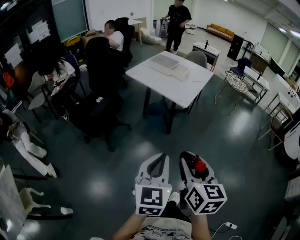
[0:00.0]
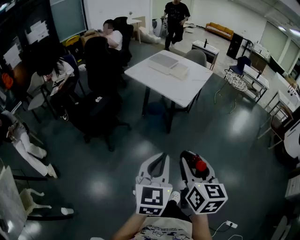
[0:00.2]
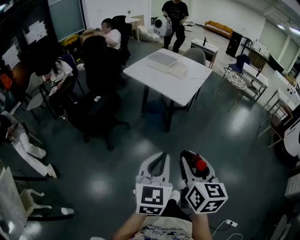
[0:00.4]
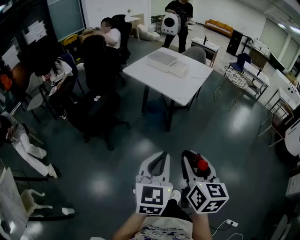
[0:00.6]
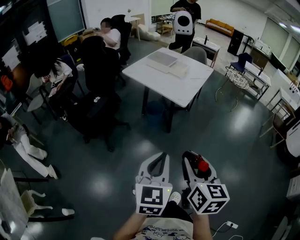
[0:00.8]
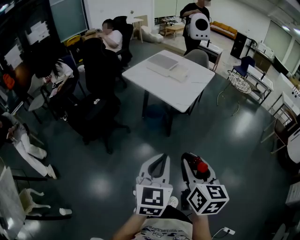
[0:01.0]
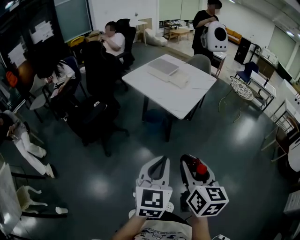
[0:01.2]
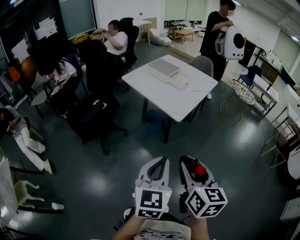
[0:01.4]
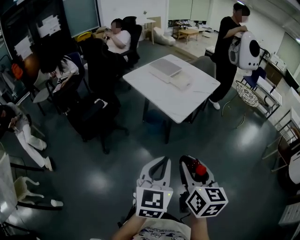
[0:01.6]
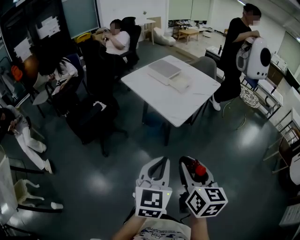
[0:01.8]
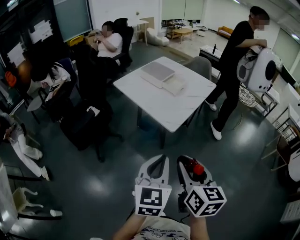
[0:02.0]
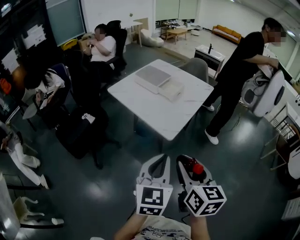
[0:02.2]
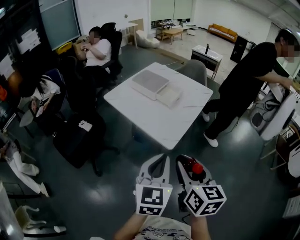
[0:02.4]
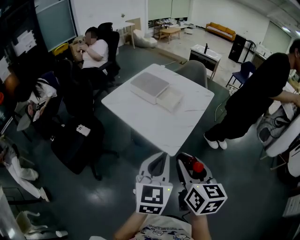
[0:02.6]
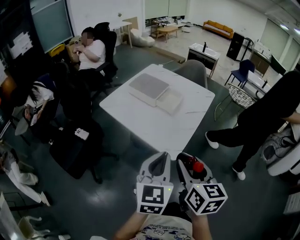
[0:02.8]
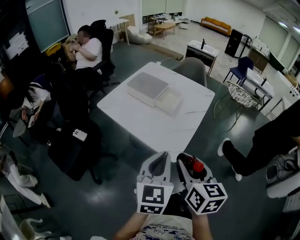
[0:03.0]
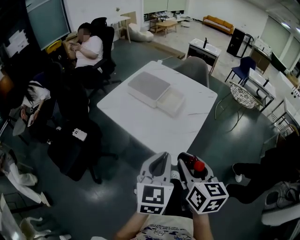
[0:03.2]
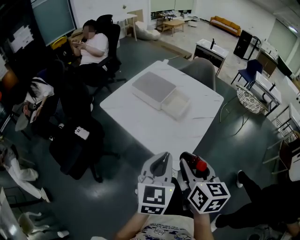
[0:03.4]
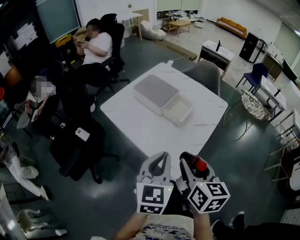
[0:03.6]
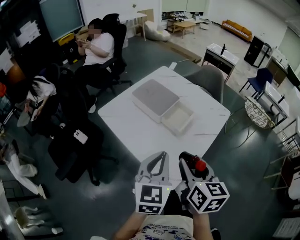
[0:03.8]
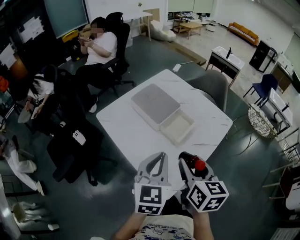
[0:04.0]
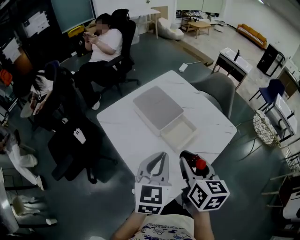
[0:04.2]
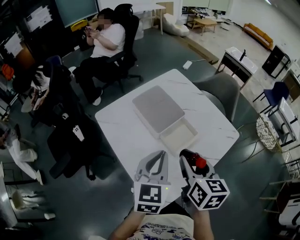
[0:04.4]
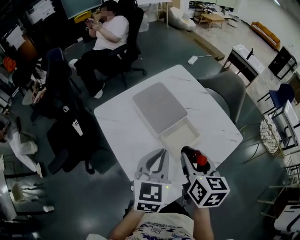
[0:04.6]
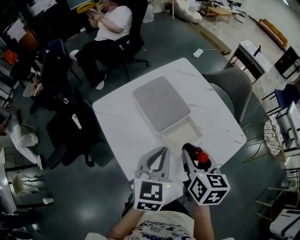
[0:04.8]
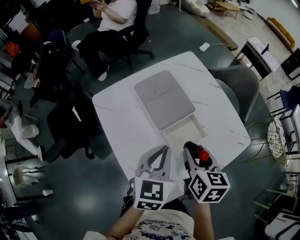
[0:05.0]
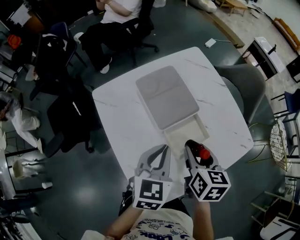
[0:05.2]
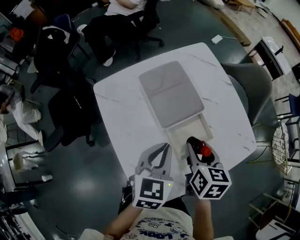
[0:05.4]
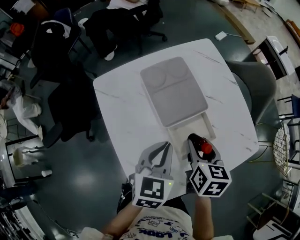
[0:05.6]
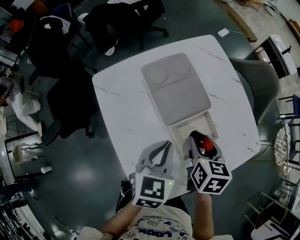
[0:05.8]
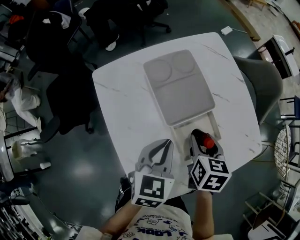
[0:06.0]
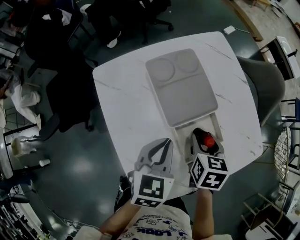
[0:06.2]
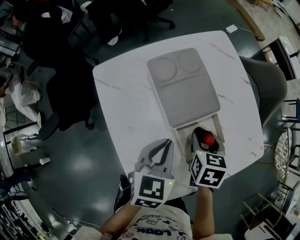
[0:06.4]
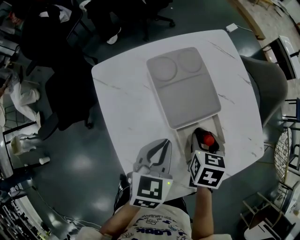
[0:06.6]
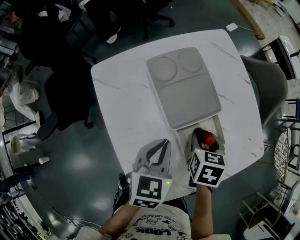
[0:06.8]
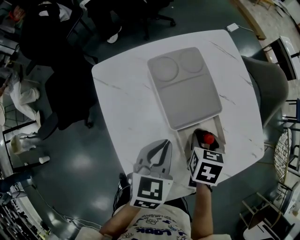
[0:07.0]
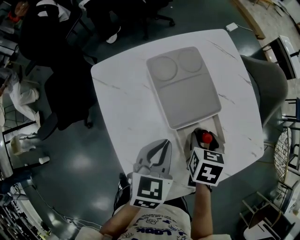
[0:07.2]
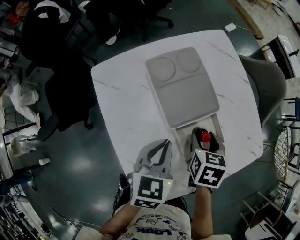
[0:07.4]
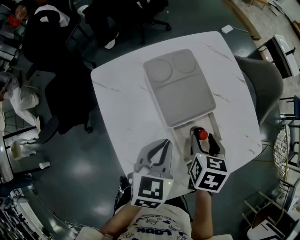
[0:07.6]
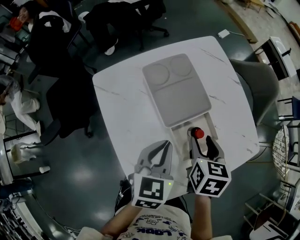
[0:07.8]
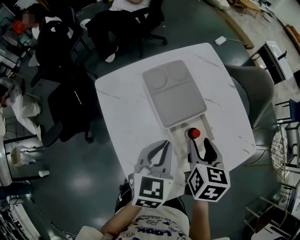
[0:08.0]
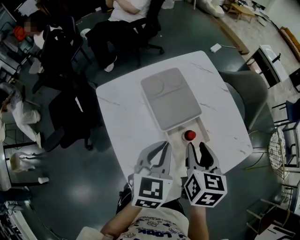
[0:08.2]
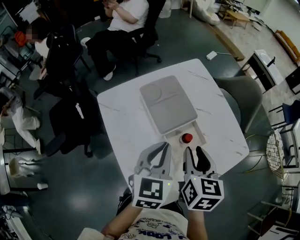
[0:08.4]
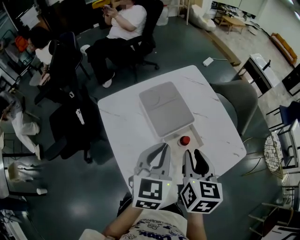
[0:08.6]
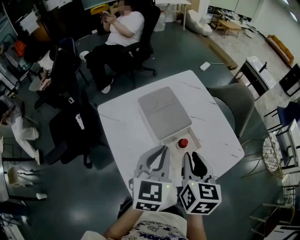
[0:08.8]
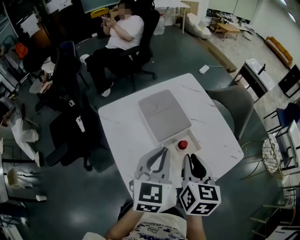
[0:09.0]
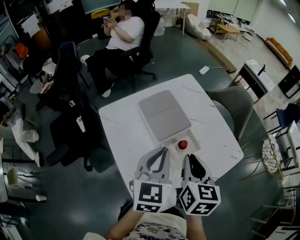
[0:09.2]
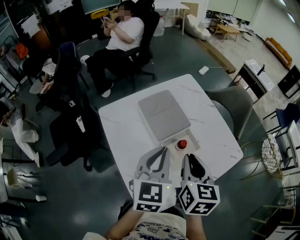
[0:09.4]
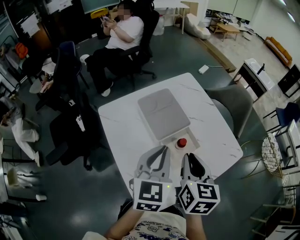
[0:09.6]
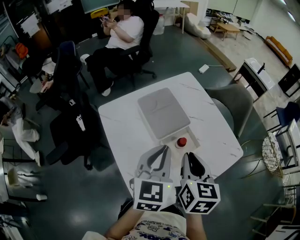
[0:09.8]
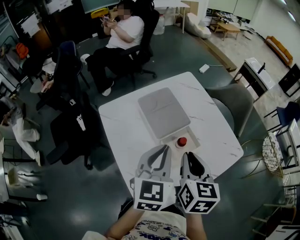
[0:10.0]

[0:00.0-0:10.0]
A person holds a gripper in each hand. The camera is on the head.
0:00.0 to 0:01.4: Both grippers travel together forward and to the right, approximately 15 cm.
0:01.4 to 0:02.8: The two grippers go approximately 30 cm forward.
0:02.8 to 0:04.2: Both grippers travel together forward, roughly 30 cm.
0:04.2 to 0:05.8: The right gripper is displaced forward and downward by about 25 cm, and turns by approximately 20 degrees. Meanwhile the left gripper moves downward and forward, some 20 cm, and turns by roughly 20 degrees.
0:05.8 to 0:07.2: The right gripper moves downward, roughly 5 cm.
0:07.2 to 0:08.6: The left gripper heads upward, covering some 15 cm, while the right gripper goes approximately 20 cm upward and backward, swivels about 30 degrees, and closes up.
0:08.6 to 0:10.0: There are only small adjustments of the grippers.

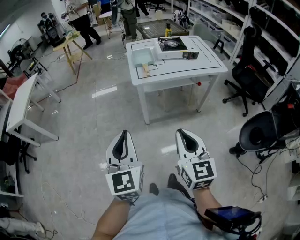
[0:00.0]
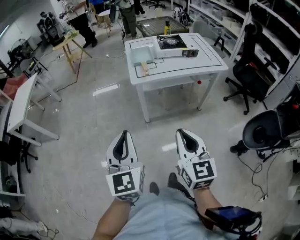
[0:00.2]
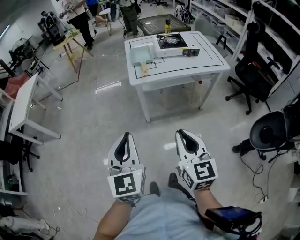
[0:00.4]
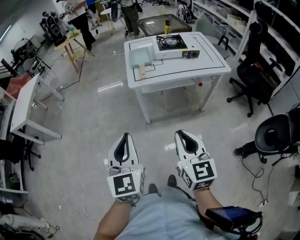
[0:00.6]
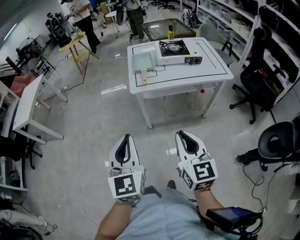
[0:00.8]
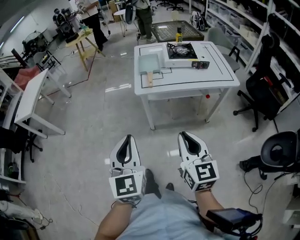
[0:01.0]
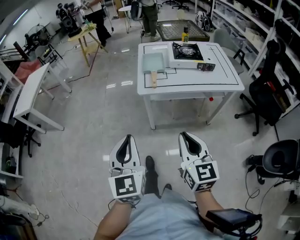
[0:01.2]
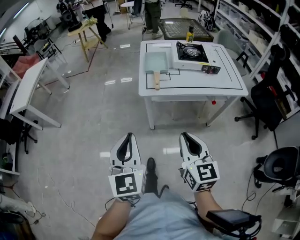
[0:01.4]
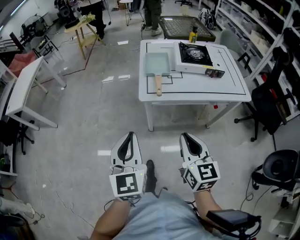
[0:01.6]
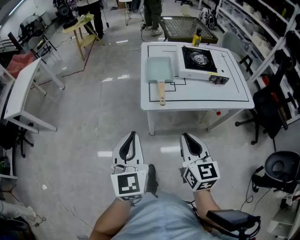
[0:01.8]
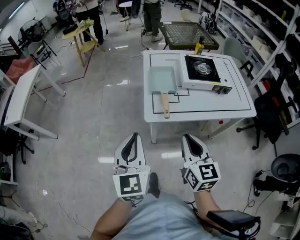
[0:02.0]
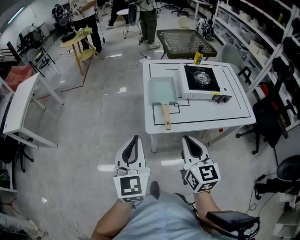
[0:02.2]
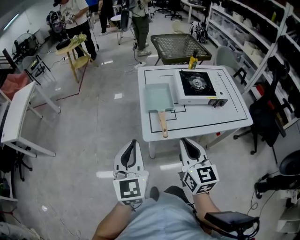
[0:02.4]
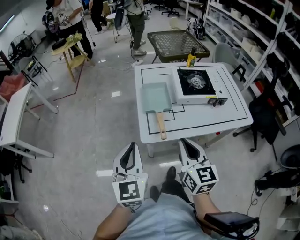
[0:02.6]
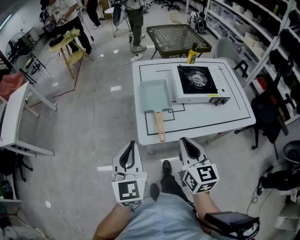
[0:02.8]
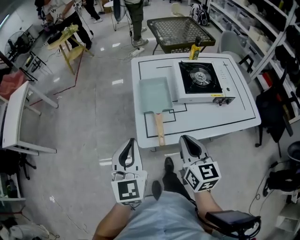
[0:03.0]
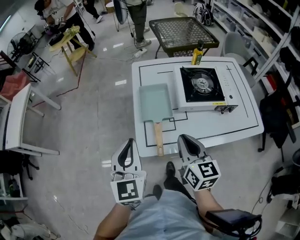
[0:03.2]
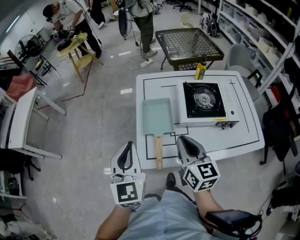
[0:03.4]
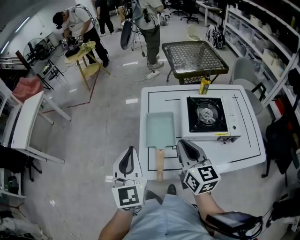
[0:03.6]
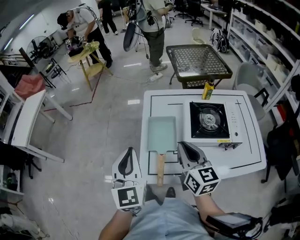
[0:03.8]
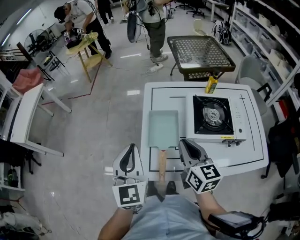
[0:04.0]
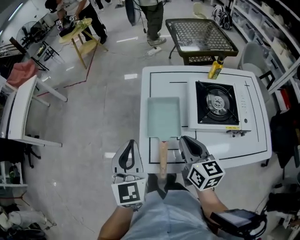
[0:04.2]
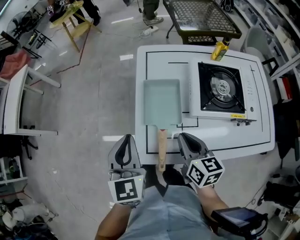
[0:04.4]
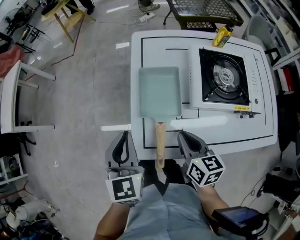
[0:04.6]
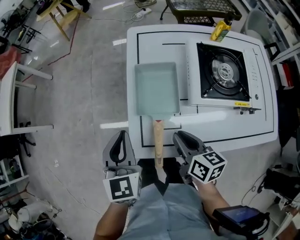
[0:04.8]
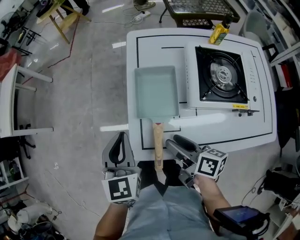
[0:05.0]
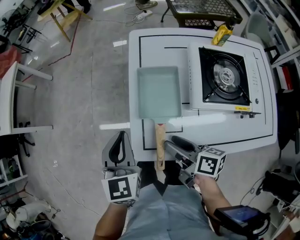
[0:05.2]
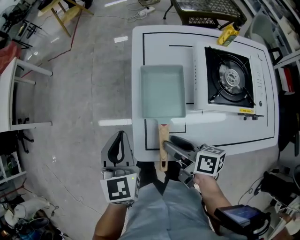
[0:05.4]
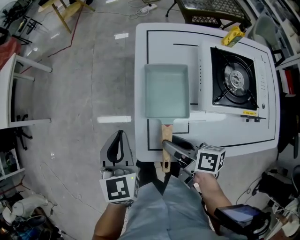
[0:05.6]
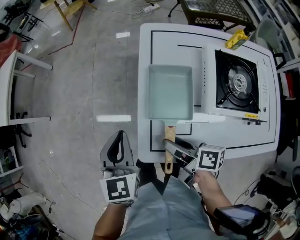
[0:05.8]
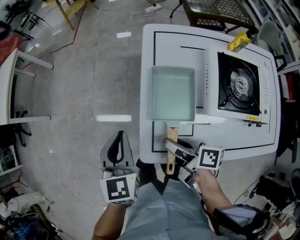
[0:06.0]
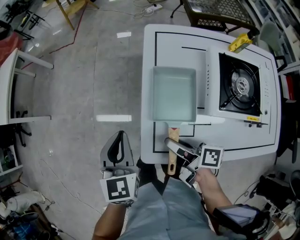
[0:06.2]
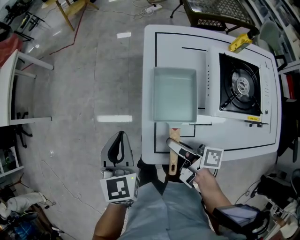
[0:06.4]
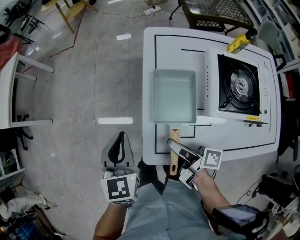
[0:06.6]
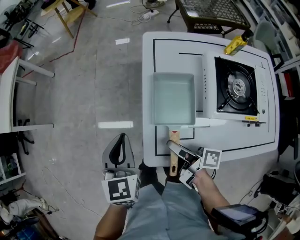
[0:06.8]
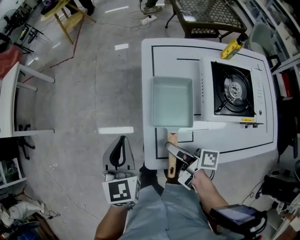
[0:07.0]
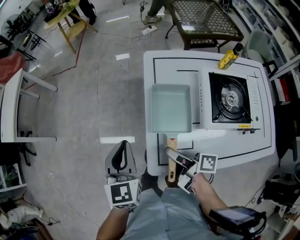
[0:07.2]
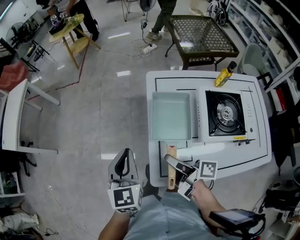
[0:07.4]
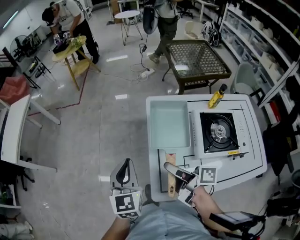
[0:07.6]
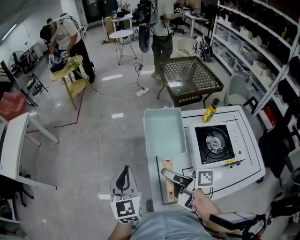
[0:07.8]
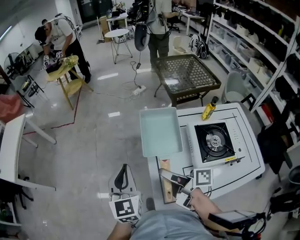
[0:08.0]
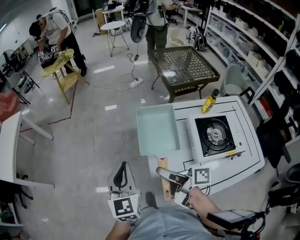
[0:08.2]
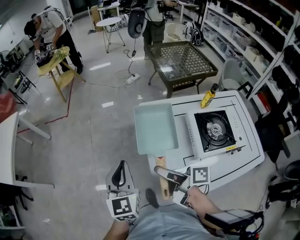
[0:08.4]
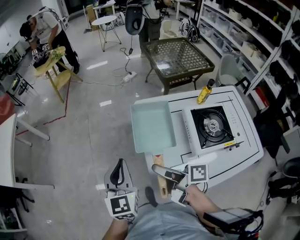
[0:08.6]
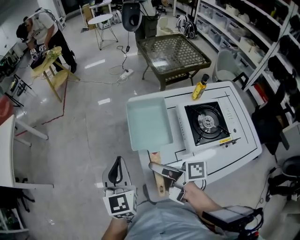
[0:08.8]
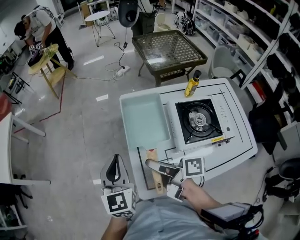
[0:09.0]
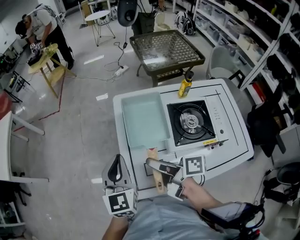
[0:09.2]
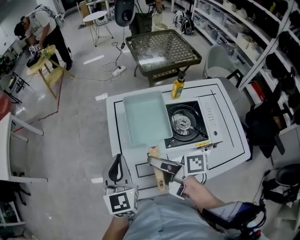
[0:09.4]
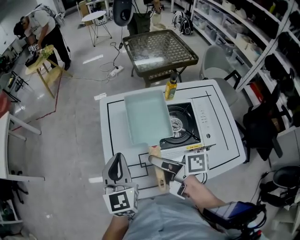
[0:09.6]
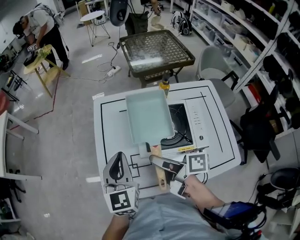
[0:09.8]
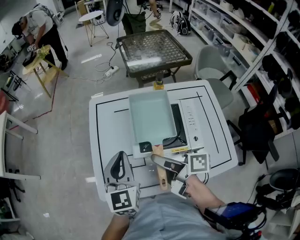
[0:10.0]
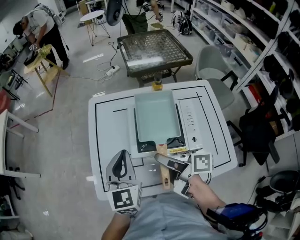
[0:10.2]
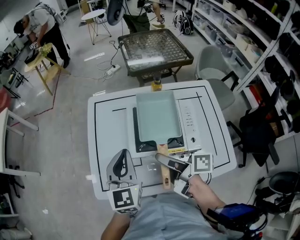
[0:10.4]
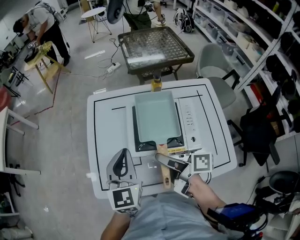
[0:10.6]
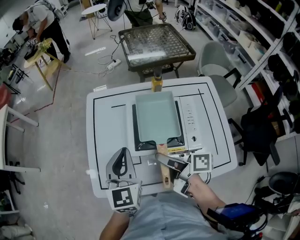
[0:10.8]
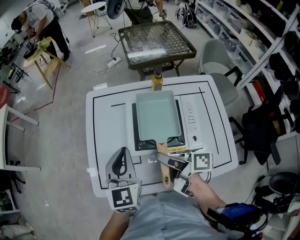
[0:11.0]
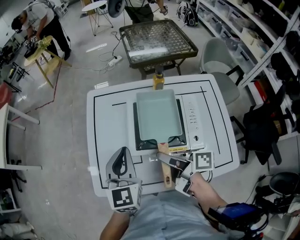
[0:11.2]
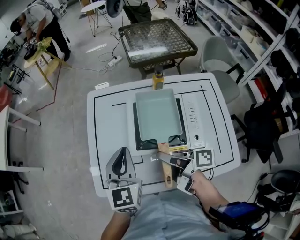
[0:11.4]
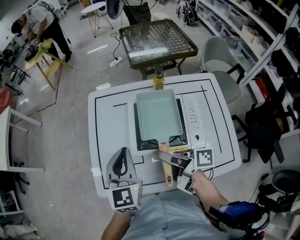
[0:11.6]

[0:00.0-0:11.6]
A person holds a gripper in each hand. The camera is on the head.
0:00.0 to 0:01.4: Both grippers move forward and to the right, some 20 cm.
0:01.4 to 0:02.8: The grippers both shift forward by some 30 cm.
0:02.8 to 0:04.4: The right gripper travels forward and downward by some 25 cm, and rotates approximately 20 degrees; the left gripper moves forward, roughly 20 cm.
0:04.4 to 0:05.8: The right gripper heads to the left and downward, covering about 10 cm, swivels about 50 degrees, and opens its fingers. Meanwhile the left gripper goes roughly 5 cm downward.
0:05.8 to 0:07.2: Both grippers move upward, about 5 cm.
0:07.2 to 0:08.8: The left gripper shifts about 10 cm upward and forward; the right gripper is displaced upward and forward by about 15 cm.
0:08.8 to 0:10.2: Both grippers travel together to the right and backward, some 35 cm.
0:10.2 to 0:11.6: The grippers move only a little.

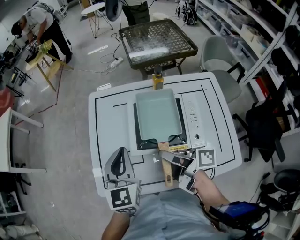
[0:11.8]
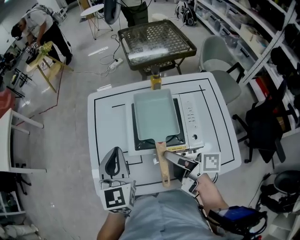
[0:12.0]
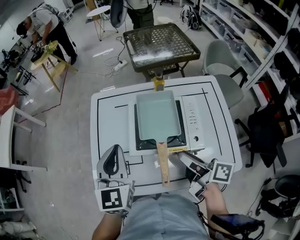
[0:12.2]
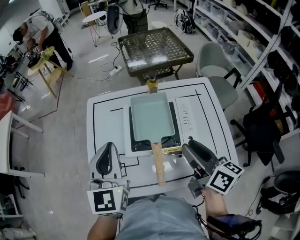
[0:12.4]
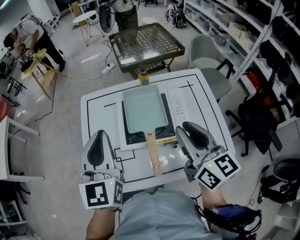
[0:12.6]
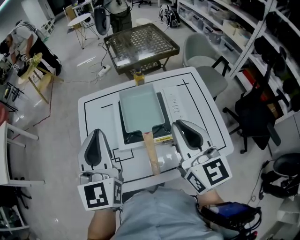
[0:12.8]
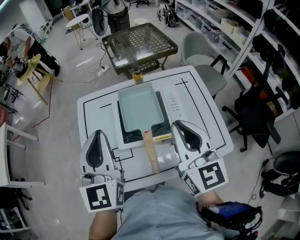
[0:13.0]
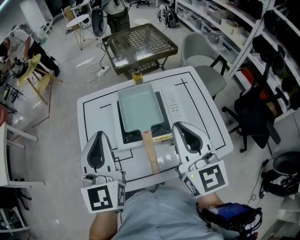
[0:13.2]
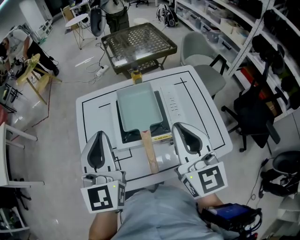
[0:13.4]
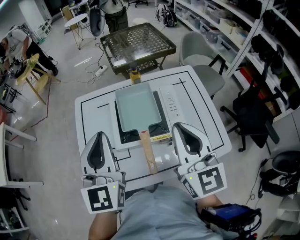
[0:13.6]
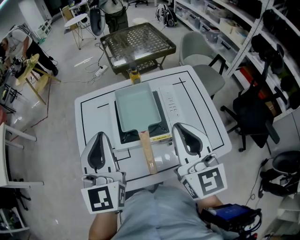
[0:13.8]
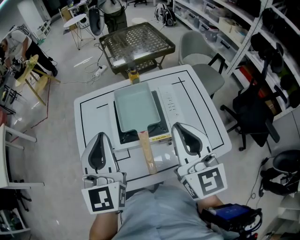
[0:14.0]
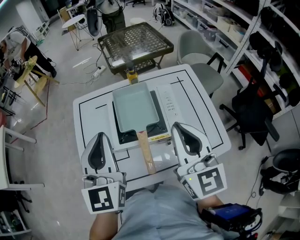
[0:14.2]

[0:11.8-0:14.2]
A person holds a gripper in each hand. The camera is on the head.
0:11.8 to 0:13.0: The left gripper moves upward, approximately 10 cm, while the right gripper is displaced upward and to the right by some 20 cm, rotates around the line of its fingers by approximately 80 degrees, counterclockwise from behind, and closes its fingers.
0:13.0 to 0:14.2: The grippers move only a little.
